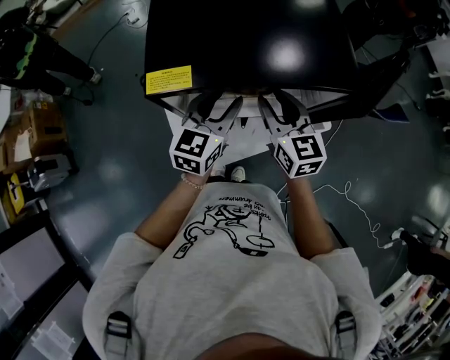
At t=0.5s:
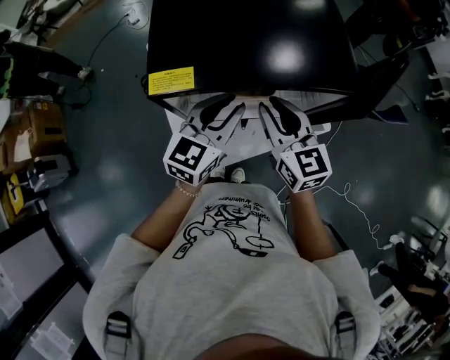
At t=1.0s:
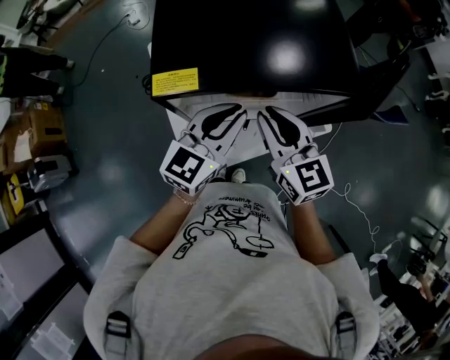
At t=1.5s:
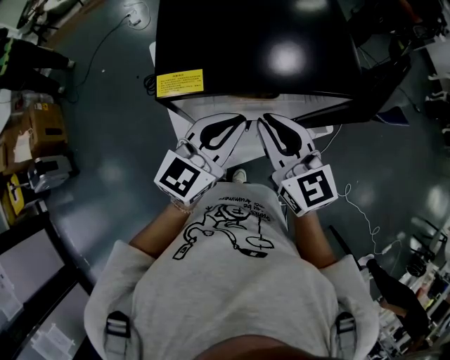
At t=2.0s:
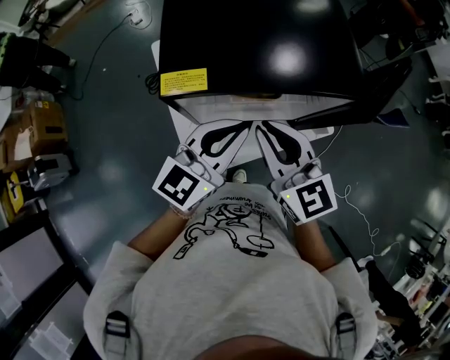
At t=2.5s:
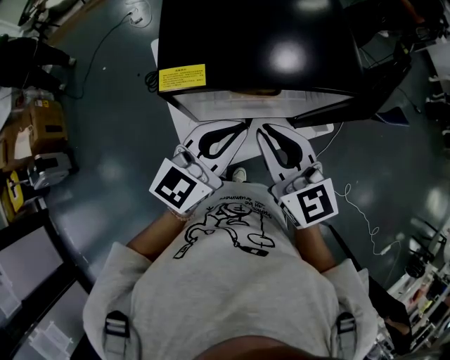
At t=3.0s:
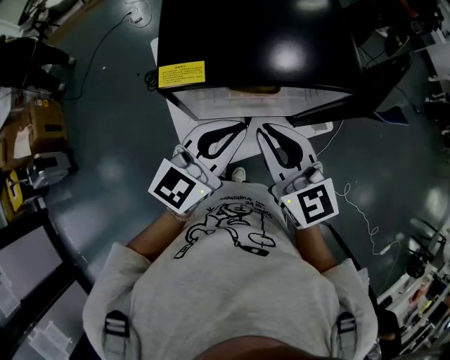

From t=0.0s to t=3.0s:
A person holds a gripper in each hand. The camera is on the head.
From t=0.0s to t=1.5s: The left gripper shifts some 10 cm upward and backward, and closes, while the right gripper heads backward and upward, covering approximately 10 cm, and closes.
From t=1.5s to t=3.0s: The grippers make only small movements.

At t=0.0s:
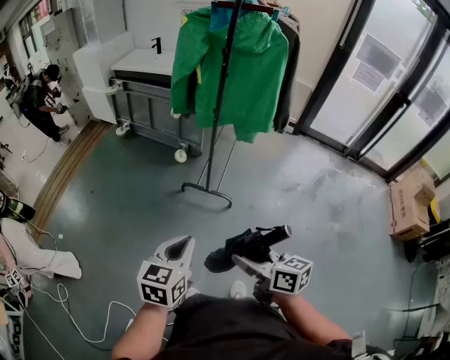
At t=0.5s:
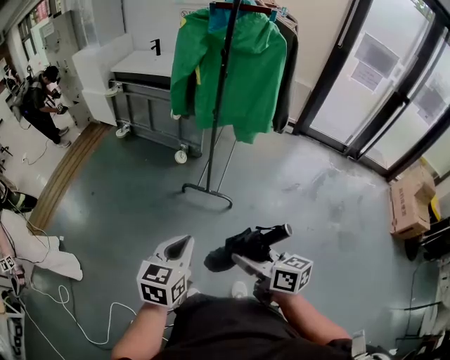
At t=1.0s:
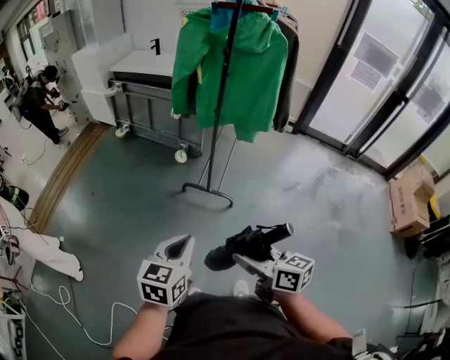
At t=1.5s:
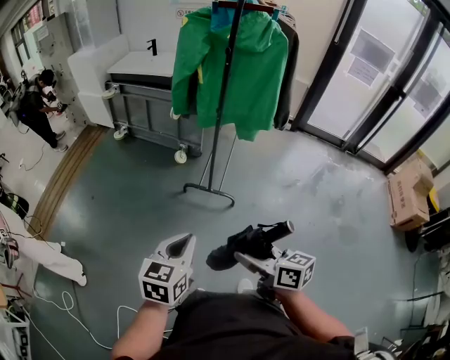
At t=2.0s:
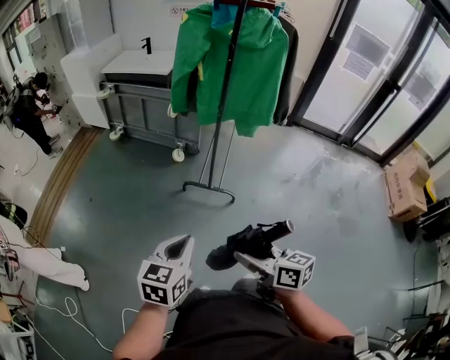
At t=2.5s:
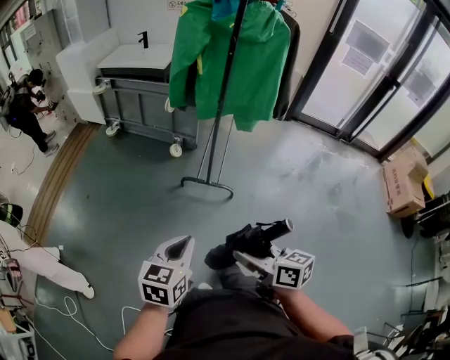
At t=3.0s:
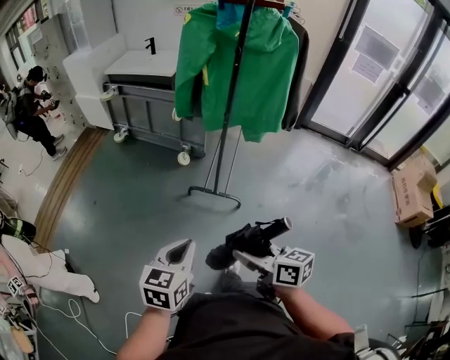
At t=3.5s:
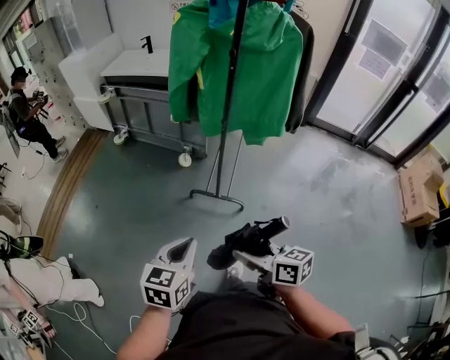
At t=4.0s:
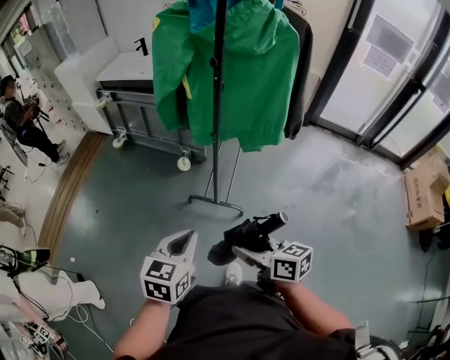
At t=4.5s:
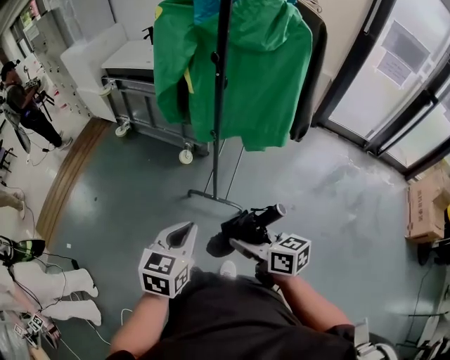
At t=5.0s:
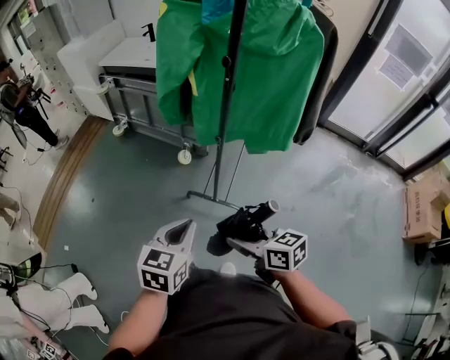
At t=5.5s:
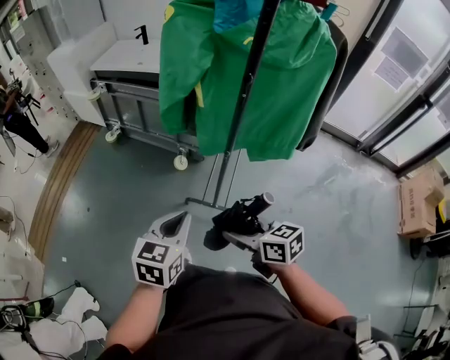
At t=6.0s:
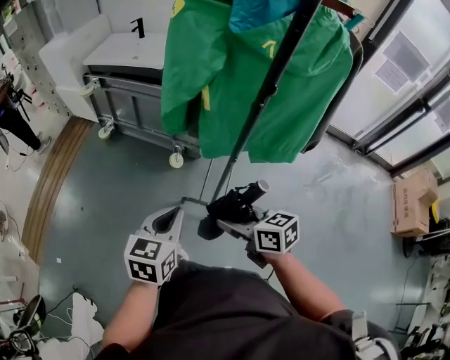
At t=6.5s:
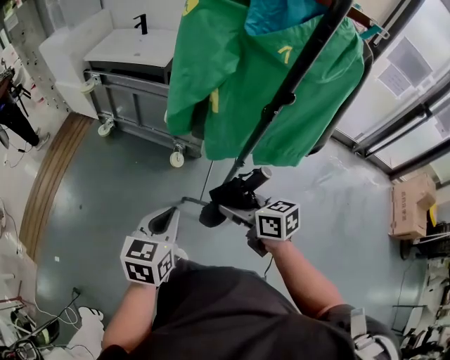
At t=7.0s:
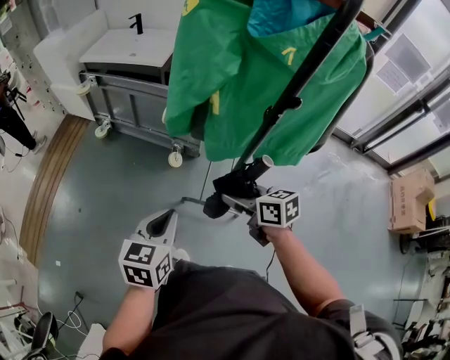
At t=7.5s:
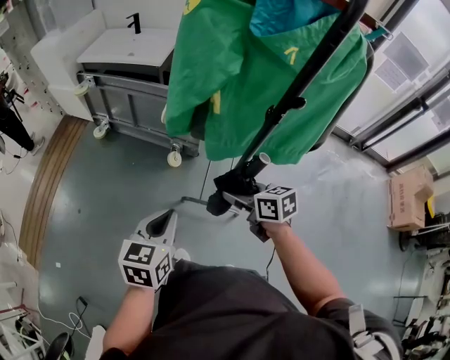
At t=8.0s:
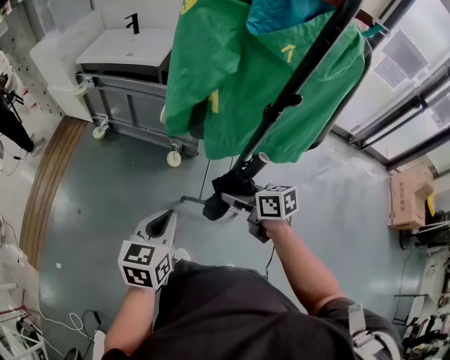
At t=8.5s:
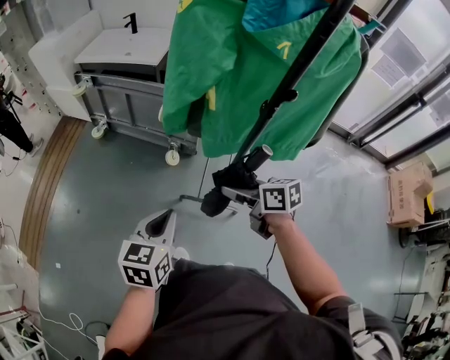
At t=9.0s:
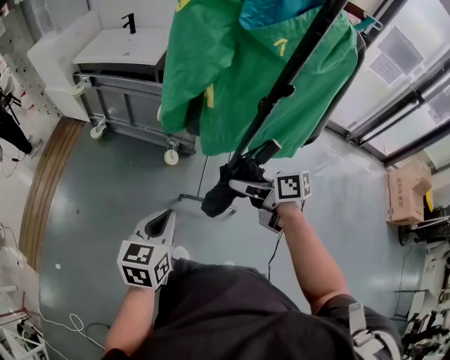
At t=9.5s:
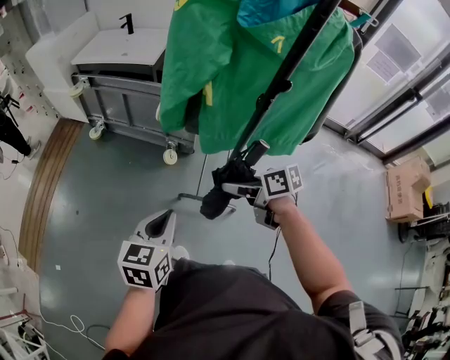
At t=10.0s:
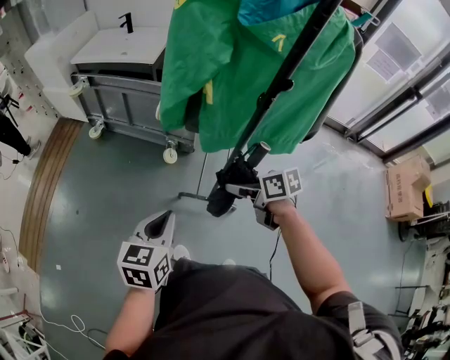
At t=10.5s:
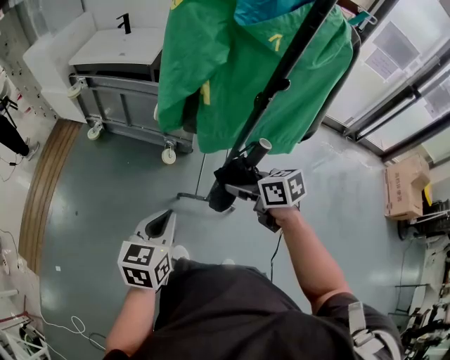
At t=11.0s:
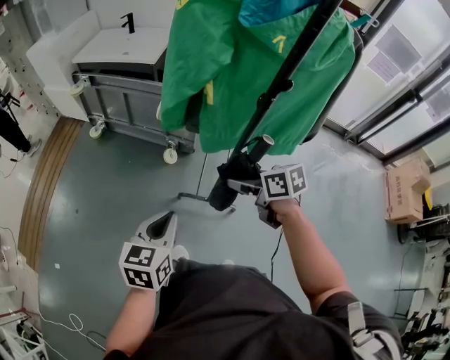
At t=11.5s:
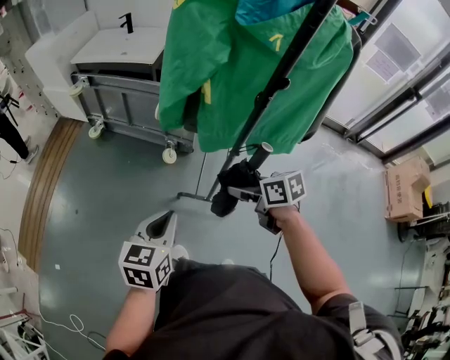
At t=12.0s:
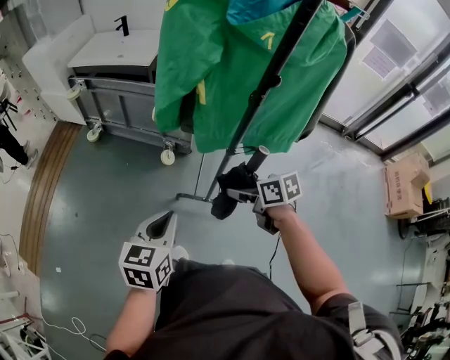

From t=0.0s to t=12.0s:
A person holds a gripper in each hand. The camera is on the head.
From t=0.0s to t=2.0s: The grippers both shift to the left by approximately 5 cm.
From t=2.0s to t=4.0s: Both grippers move forward and to the right, roughly 20 cm.
From t=4.0s to t=6.0s: Both grippers move forward, about 20 cm.
From t=6.0s to t=8.0s: The right gripper travels forward by roughly 10 cm; the left gripper changes place by some 5 cm.
From t=8.0s to t=12.0s: The grippers stay close to where they were, moving slightly.

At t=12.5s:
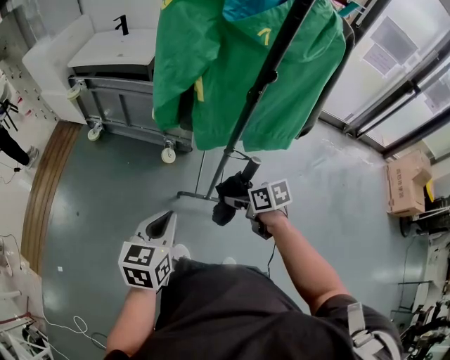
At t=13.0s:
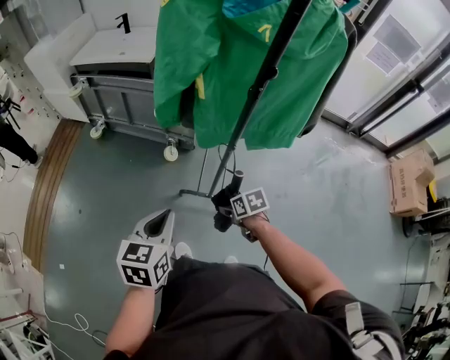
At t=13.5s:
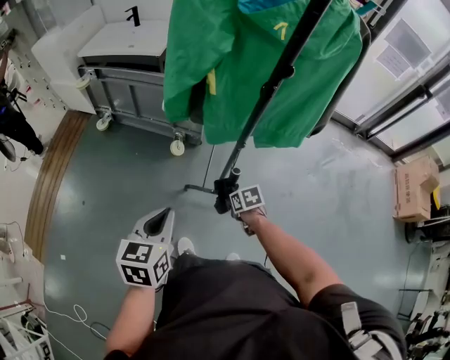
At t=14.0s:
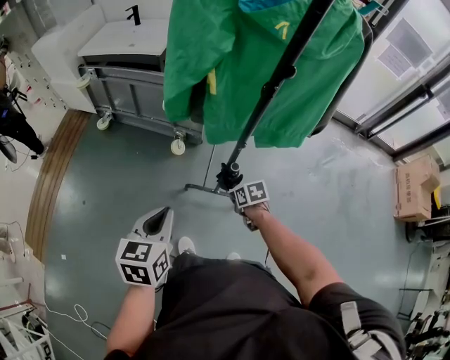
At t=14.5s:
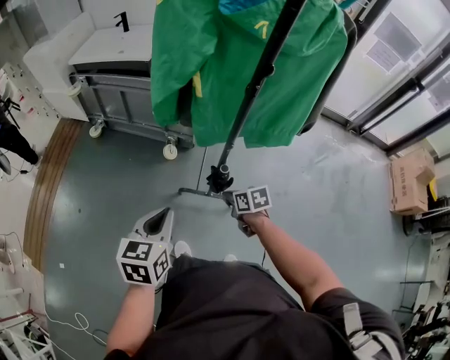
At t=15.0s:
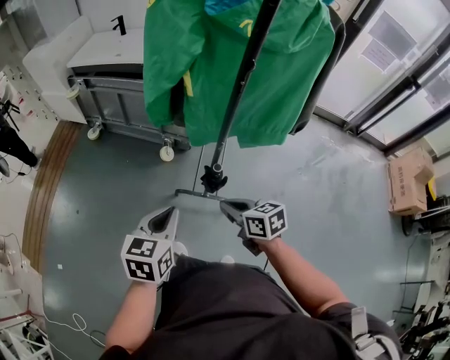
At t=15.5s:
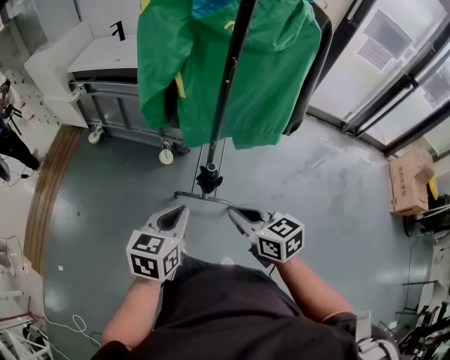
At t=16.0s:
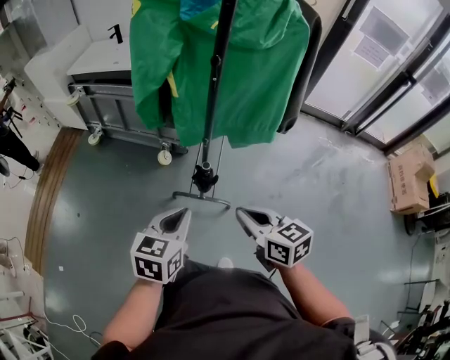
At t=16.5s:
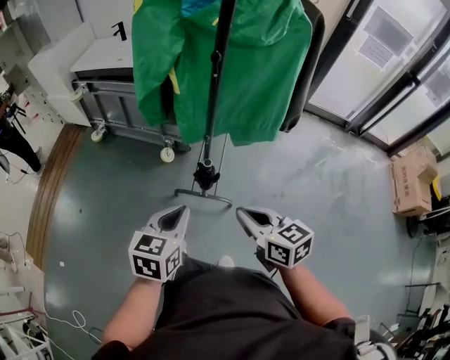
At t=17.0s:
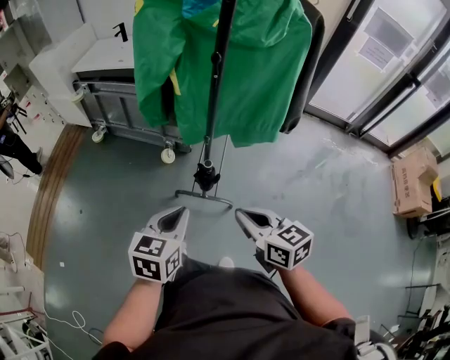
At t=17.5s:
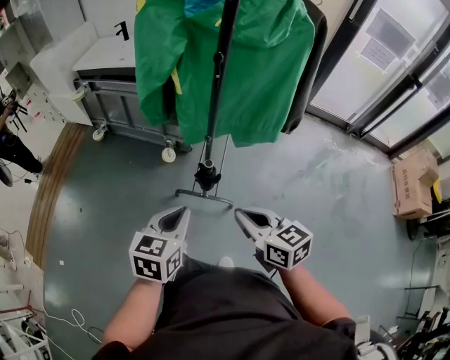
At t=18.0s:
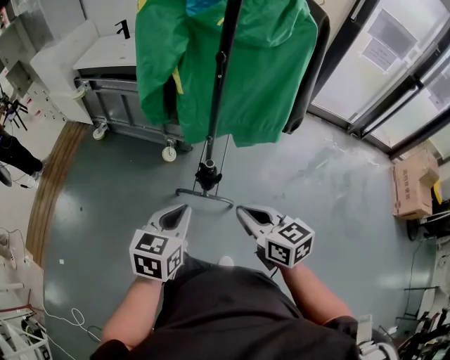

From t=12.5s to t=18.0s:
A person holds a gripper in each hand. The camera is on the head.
From t=12.5s to t=14.5s: The right gripper heads downward, covering roughly 10 cm, and closes its fingers.
From t=14.5s to t=16.0s: The left gripper heads to the right and backward, covering some 10 cm, while the right gripper is displaced upward and backward by approximately 25 cm, and changes its angle by roughly 30 degrees.
From t=16.0s to t=18.0s: The two grippers keep their place.

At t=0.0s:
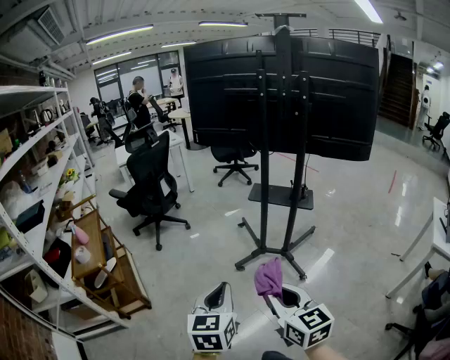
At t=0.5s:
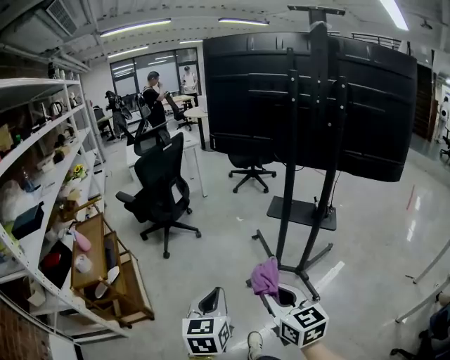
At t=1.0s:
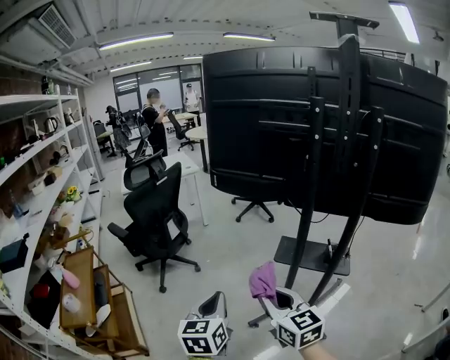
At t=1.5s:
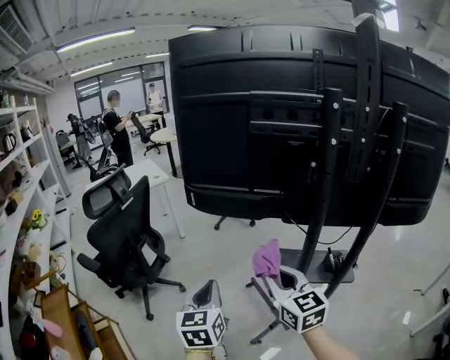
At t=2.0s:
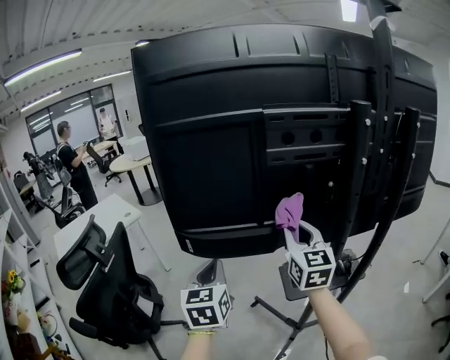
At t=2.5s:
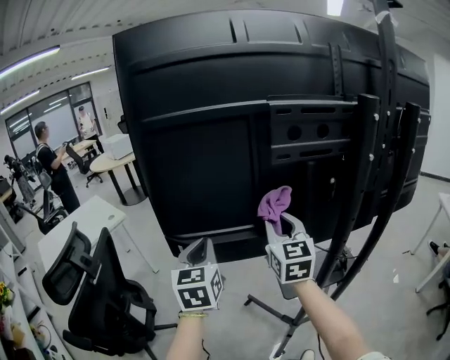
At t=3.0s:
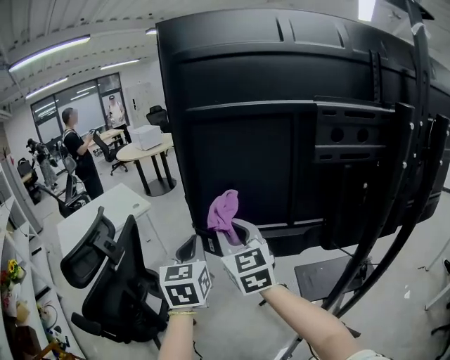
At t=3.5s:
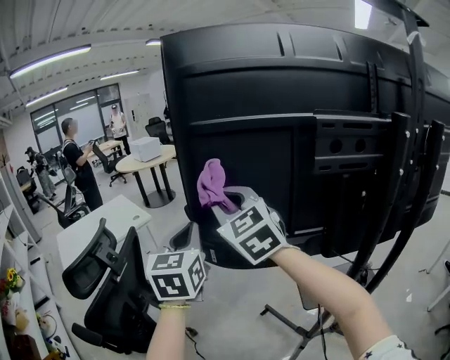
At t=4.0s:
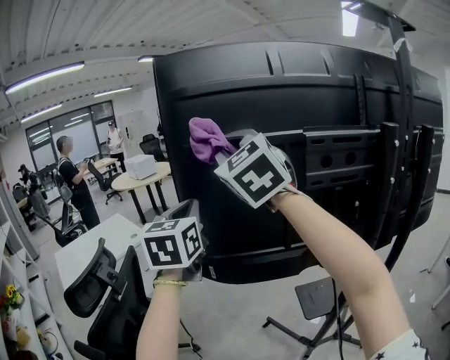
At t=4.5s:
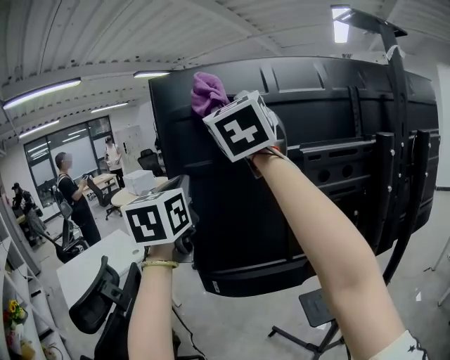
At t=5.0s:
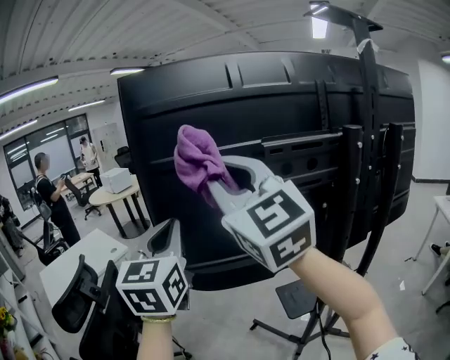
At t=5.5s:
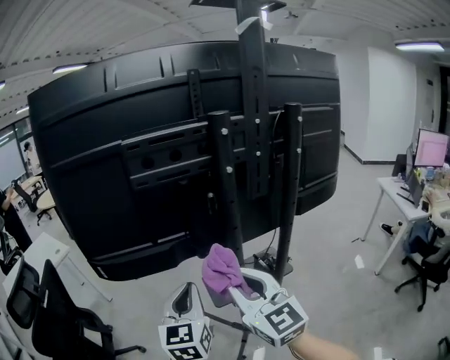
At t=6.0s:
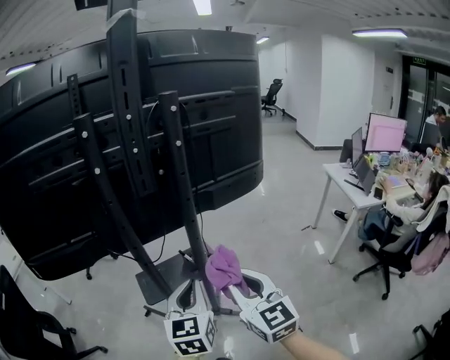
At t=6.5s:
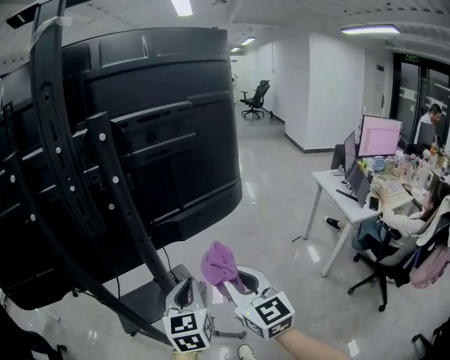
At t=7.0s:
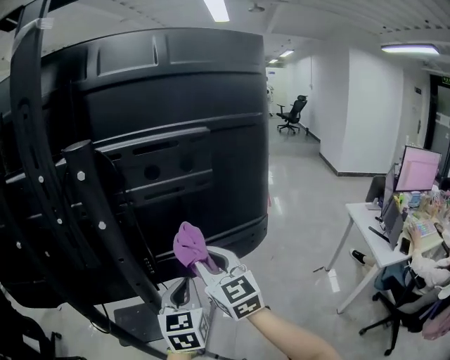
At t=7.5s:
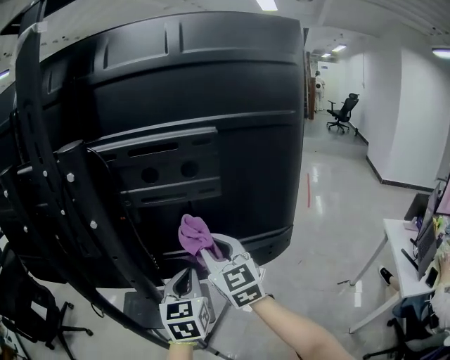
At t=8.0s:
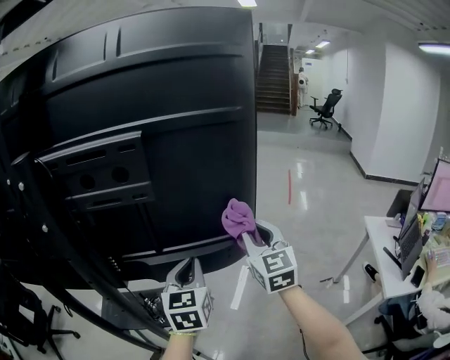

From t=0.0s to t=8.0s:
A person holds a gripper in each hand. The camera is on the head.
From t=0.0s to t=2.0s: Both grippers are carried approximately 90 cm. The right gripper rotates approximately 40 degrees.
From t=2.0s to t=4.0s: The left gripper moves upward, forward and to the left, about 25 cm. The right gripper goes about 35 cm upward and to the left, and swivels approximately 40 degrees.
From t=4.0s to t=6.0s: The two grippers travel together, to the right and backward, about 70 cm. The two grippers go some 30 cm downward. The right gripper changes its angle by roughly 40 degrees. Meanwhile the left gripper changes its angle by about 30 degrees.
From t=6.0s to t=8.0s: The pair of grippers is taken to the right and forward, some 50 cm.
